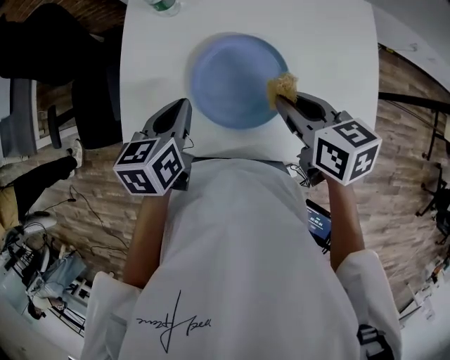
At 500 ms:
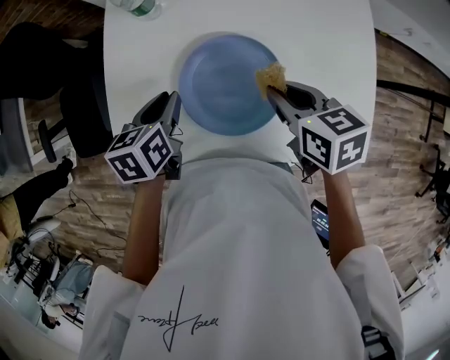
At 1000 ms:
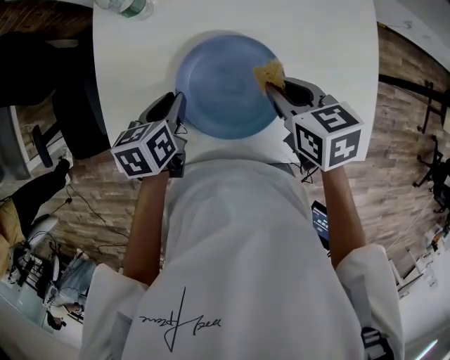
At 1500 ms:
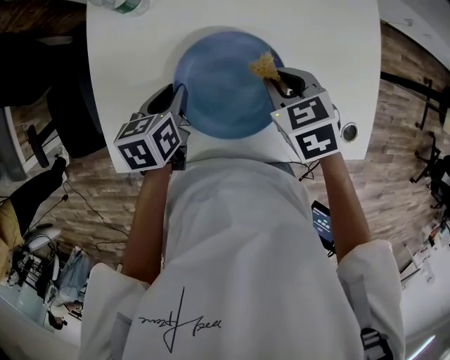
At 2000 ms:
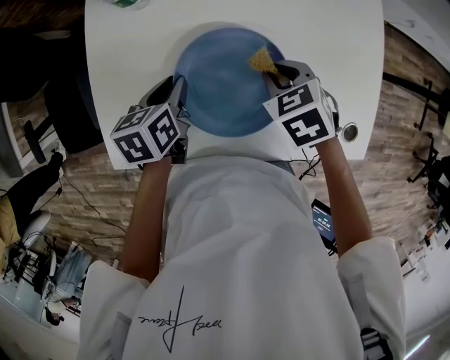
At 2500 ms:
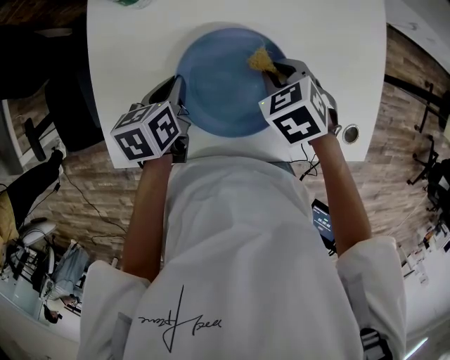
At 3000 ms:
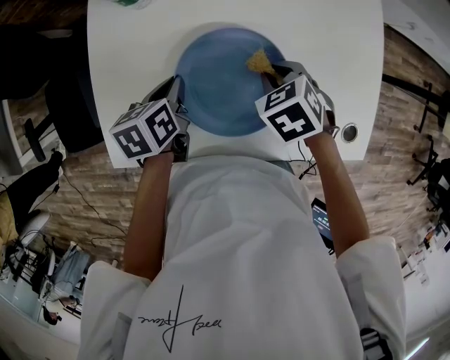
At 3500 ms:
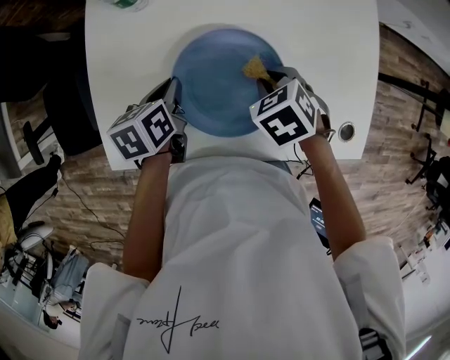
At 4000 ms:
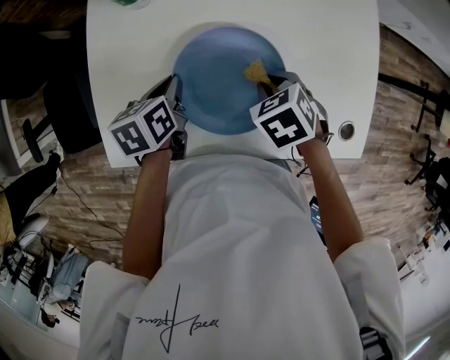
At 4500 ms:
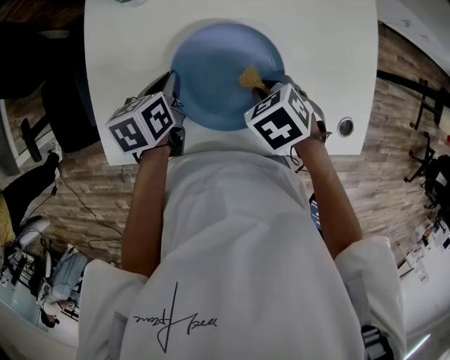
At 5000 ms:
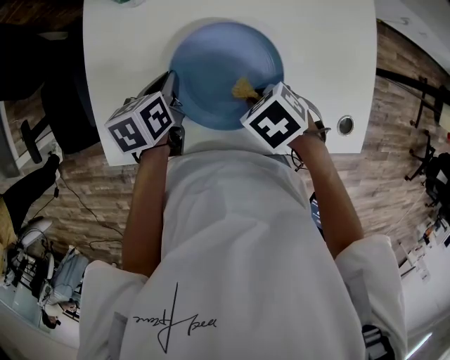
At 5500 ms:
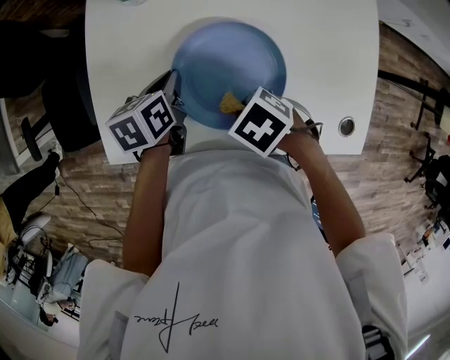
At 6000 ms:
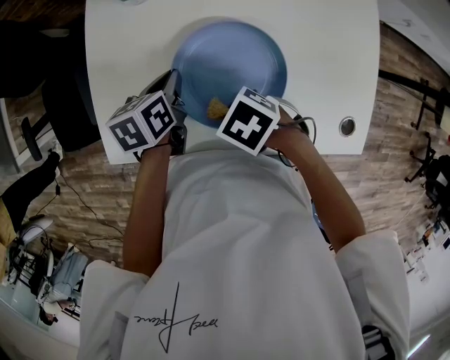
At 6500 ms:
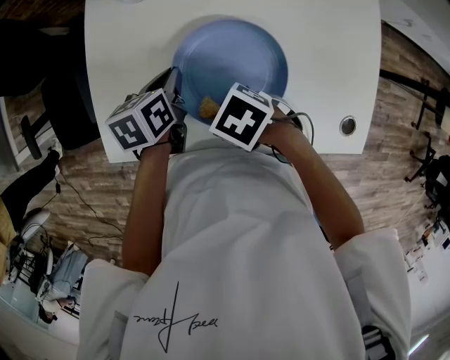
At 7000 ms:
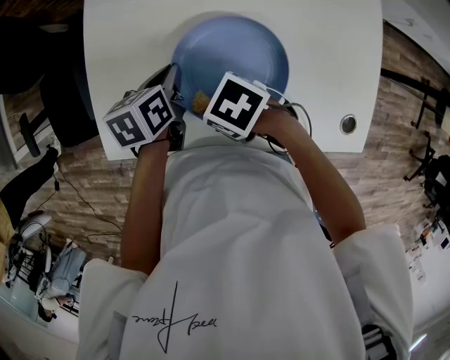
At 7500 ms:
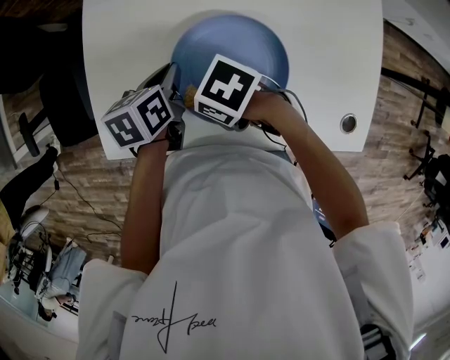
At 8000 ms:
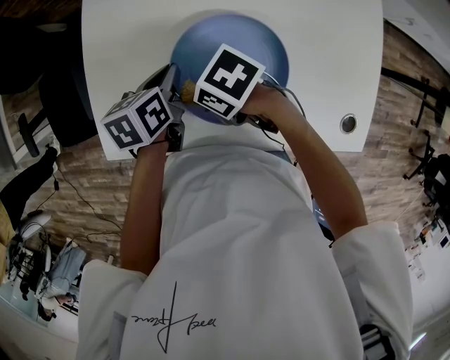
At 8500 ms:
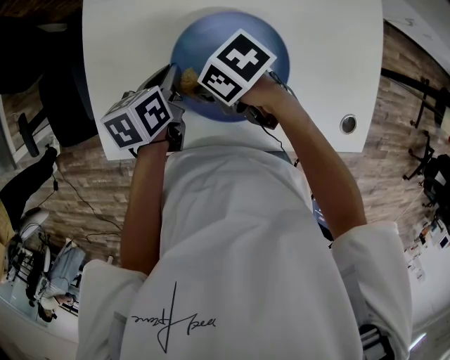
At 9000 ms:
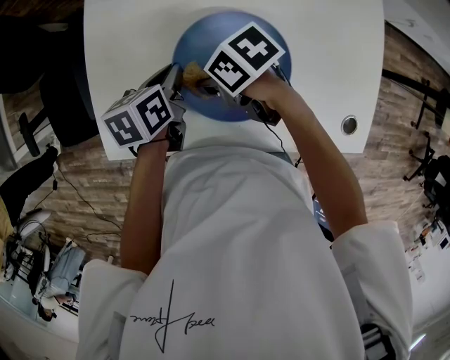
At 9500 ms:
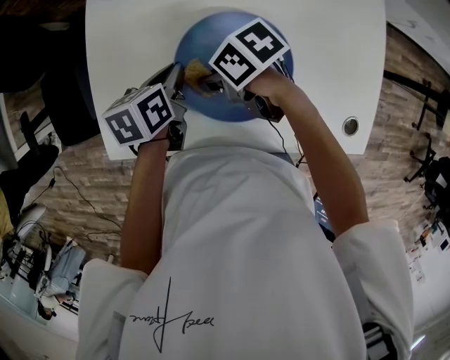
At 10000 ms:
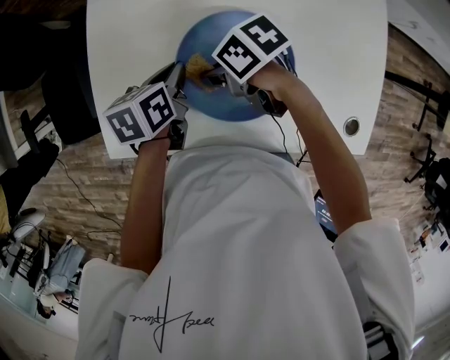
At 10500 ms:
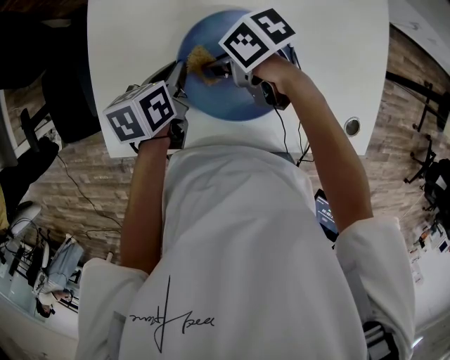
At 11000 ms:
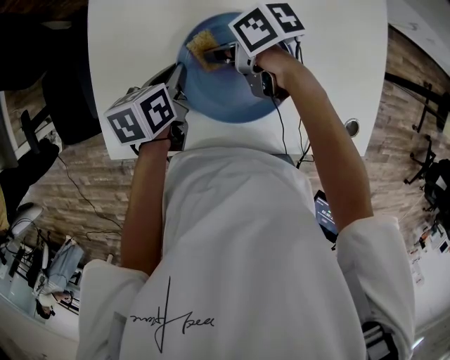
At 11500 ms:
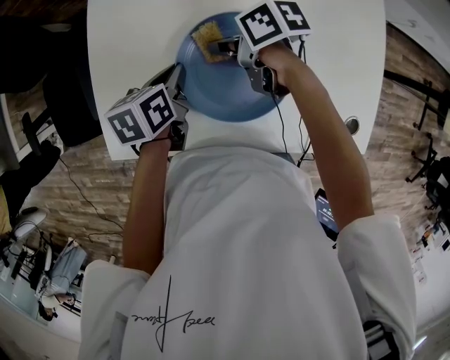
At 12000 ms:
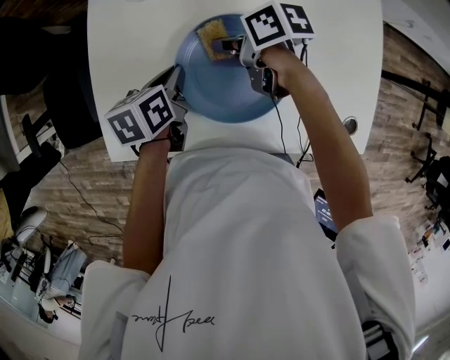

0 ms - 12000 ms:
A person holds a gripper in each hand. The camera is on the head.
0 ms - 2000 ms: Both grippers travel together downward and forward, about 10 cm. The right gripper changes its angle by about 40 degrees.
2000 ms - 4000 ms: The grippers make only small movements.
4000 ms - 6000 ms: The right gripper shifts by roughly 15 cm, and rotates approximately 30 degrees.
6000 ms - 8000 ms: The right gripper moves roughly 5 cm.
8000 ms - 10000 ms: The right gripper rotates roughly 20 degrees.
10000 ms - 12000 ms: The right gripper moves about 10 cm, and rotates approximately 20 degrees.

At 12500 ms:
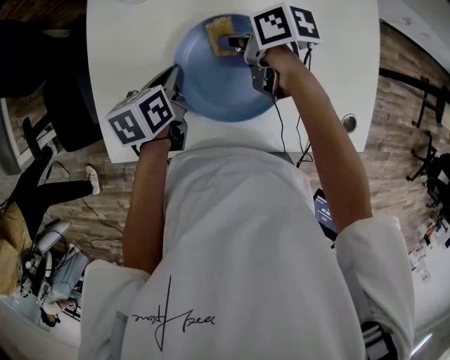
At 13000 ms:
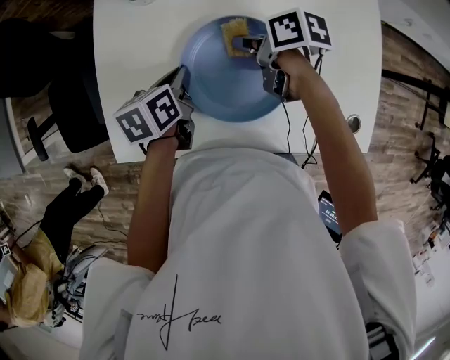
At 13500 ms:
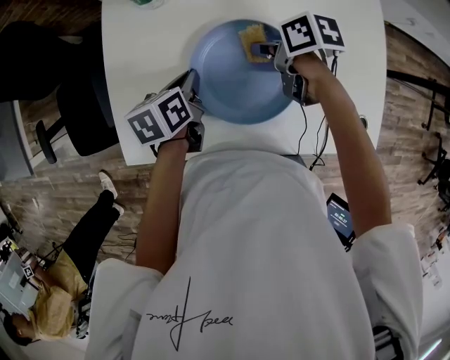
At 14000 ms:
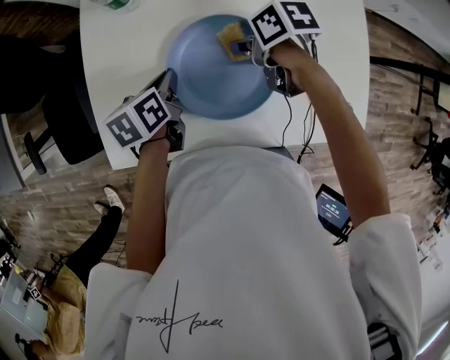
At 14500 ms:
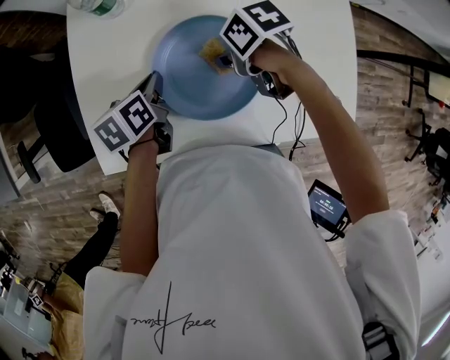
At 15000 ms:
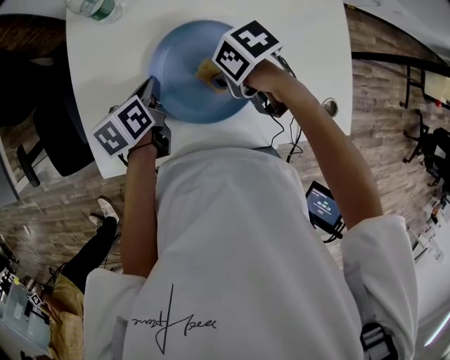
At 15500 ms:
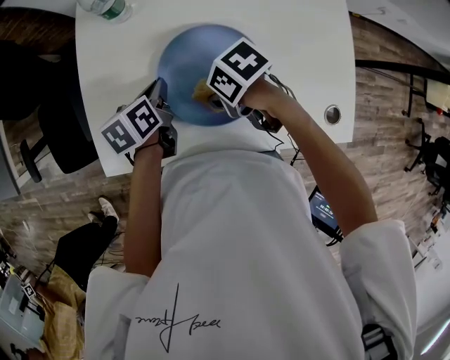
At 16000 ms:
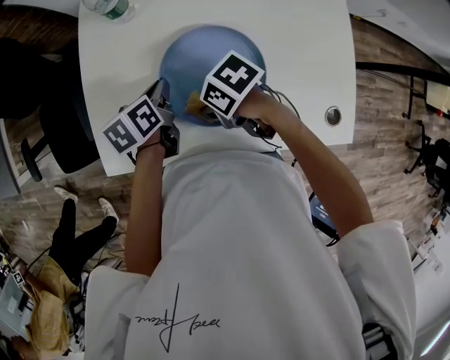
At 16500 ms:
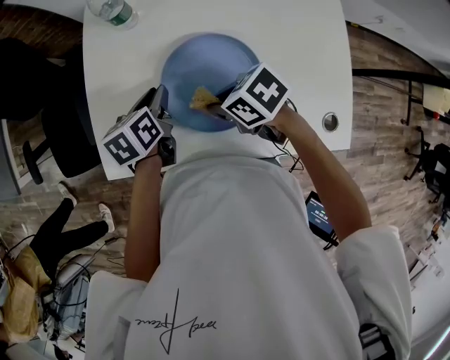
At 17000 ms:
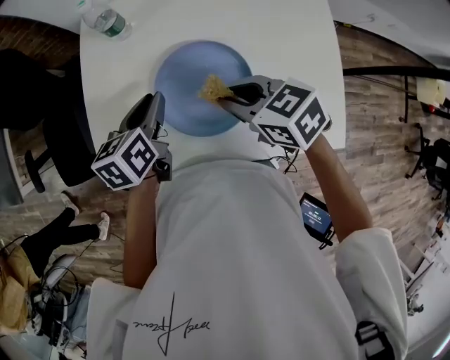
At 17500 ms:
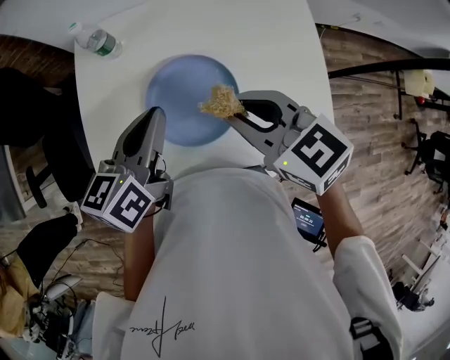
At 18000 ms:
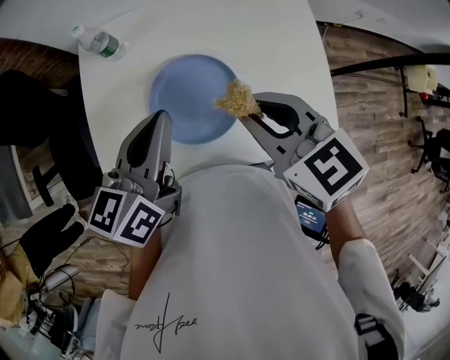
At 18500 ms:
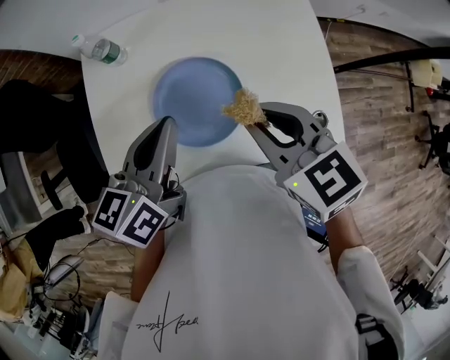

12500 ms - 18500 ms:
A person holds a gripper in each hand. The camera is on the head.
12500 ms - 14500 ms: The right gripper shifts by approximately 5 cm, and rotates roughly 30 degrees.
14500 ms - 16500 ms: The left gripper opens its fingers. The right gripper shifts by about 10 cm, and rotates some 30 degrees.
16500 ms - 18500 ms: Both grippers travel together upward, some 20 cm. The left gripper turns by about 30 degrees, and closes its fingers. The right gripper changes its angle by roughly 50 degrees.

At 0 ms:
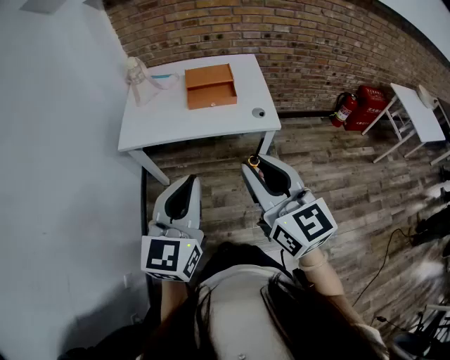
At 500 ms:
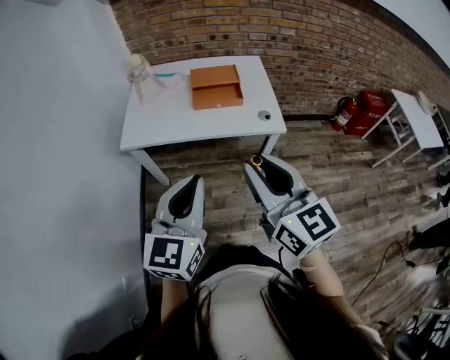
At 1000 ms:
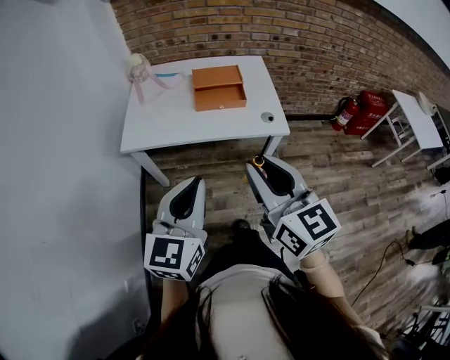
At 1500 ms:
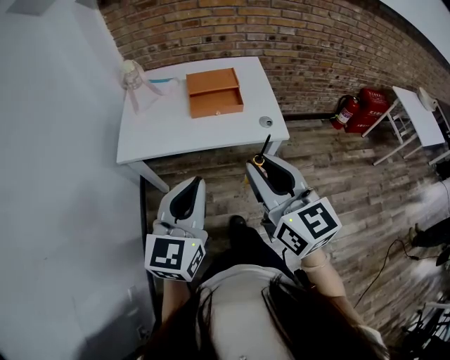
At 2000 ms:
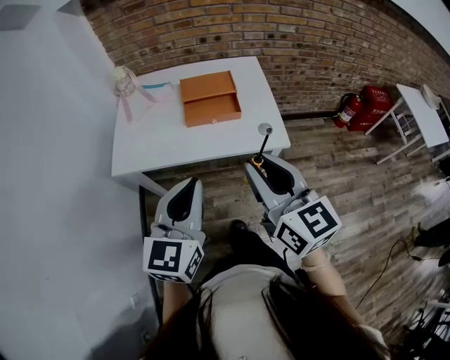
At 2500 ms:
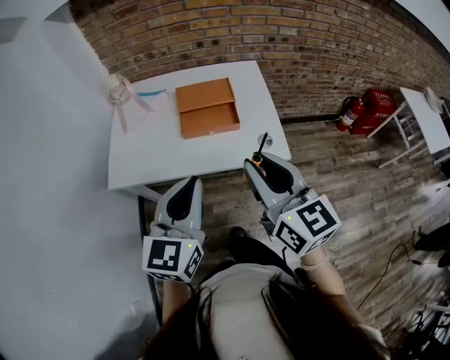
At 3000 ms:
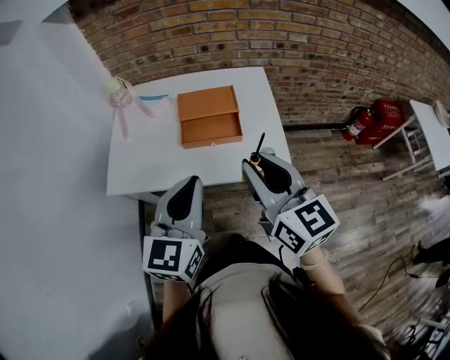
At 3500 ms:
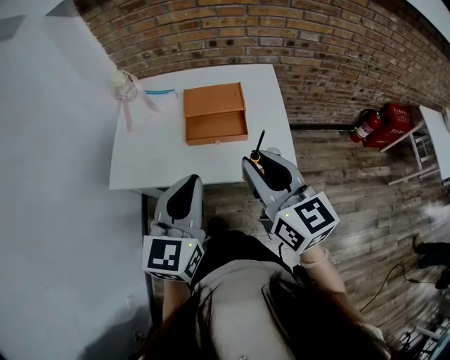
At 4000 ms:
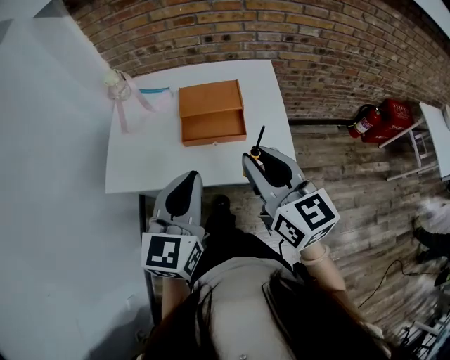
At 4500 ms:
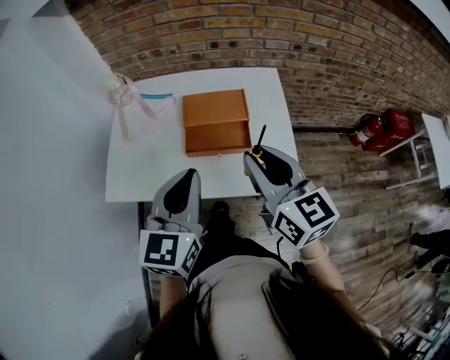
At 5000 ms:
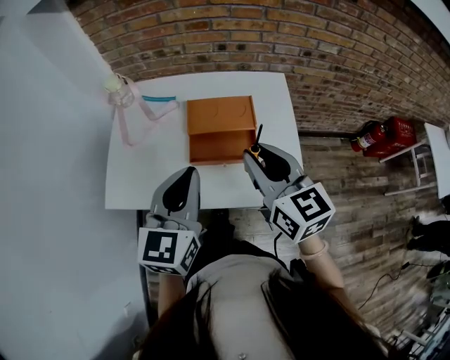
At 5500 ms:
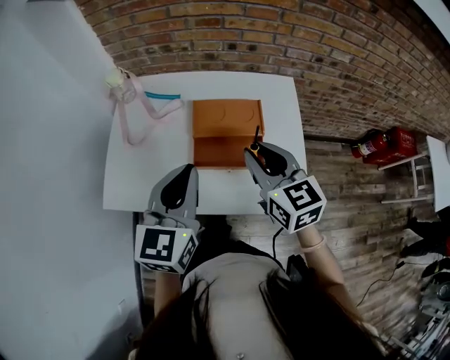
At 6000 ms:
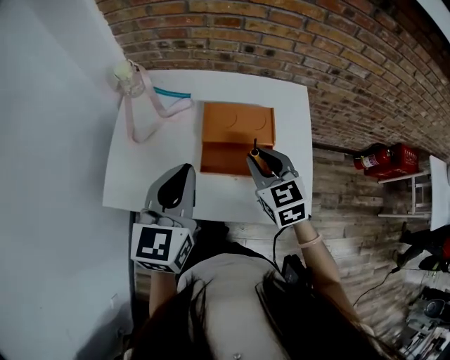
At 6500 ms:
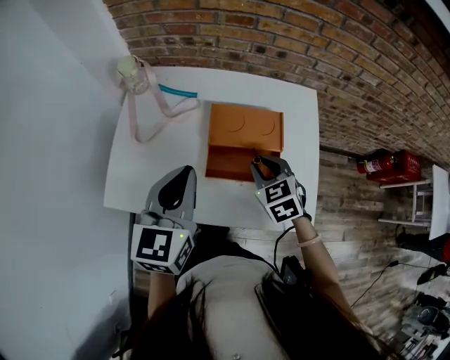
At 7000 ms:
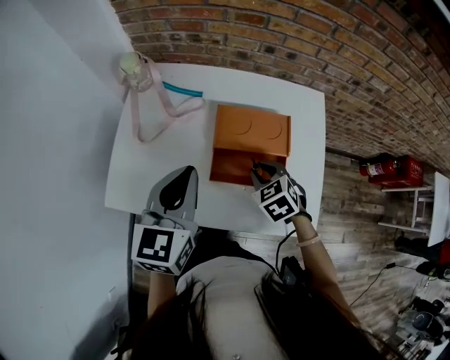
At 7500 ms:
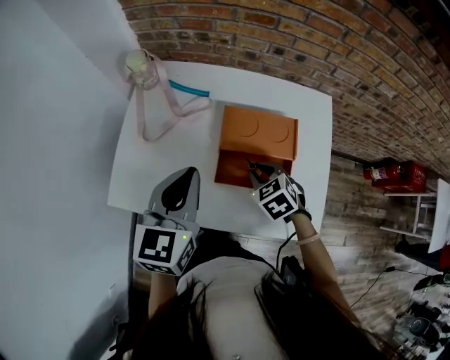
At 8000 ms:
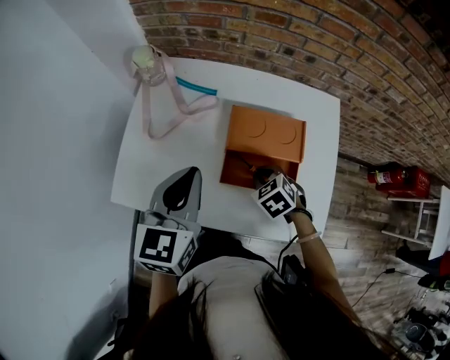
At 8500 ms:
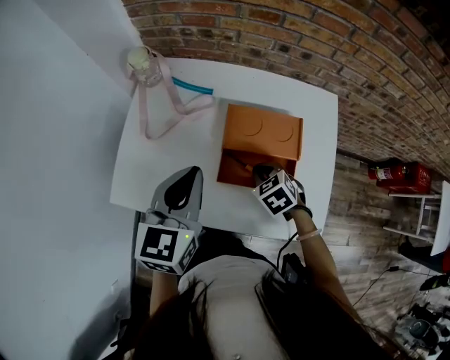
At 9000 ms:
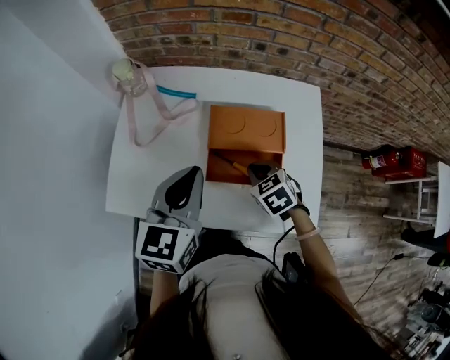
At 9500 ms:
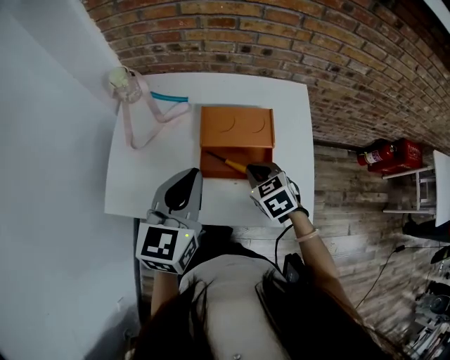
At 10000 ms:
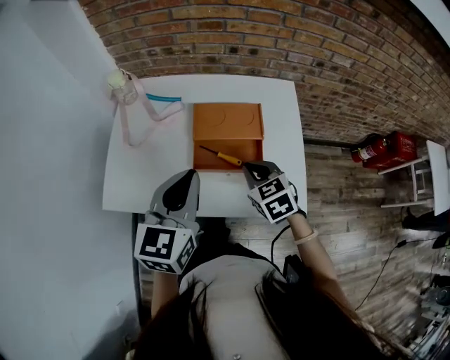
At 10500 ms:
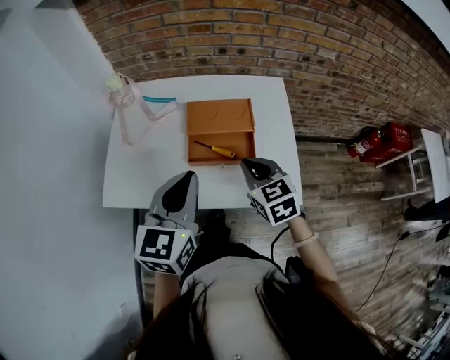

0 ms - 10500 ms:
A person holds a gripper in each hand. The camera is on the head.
0 ms - 2000 ms: Both grippers move forward, about 15 cm.
2000 ms - 4000 ms: The grippers both shift forward by some 15 cm.
4000 ms - 6500 ms: The left gripper shifts approximately 20 cm forward and to the left, while the right gripper goes about 30 cm forward and downward, and tips its fingers downward by approximately 40 degrees.
6500 ms - 8500 ms: The right gripper travels downward by approximately 10 cm.
8500 ms - 10500 ms: The left gripper is displaced backward and to the right by some 15 cm; the right gripper moves upward and backward, roughly 20 cm, and turns by some 30 degrees.
